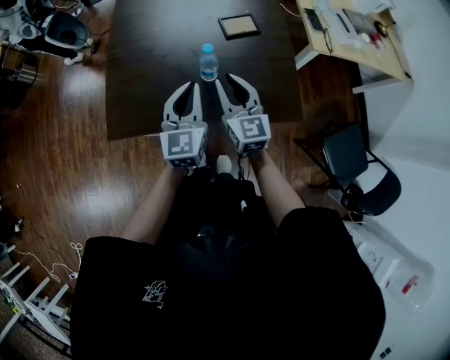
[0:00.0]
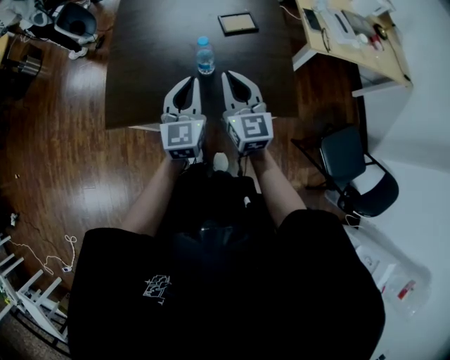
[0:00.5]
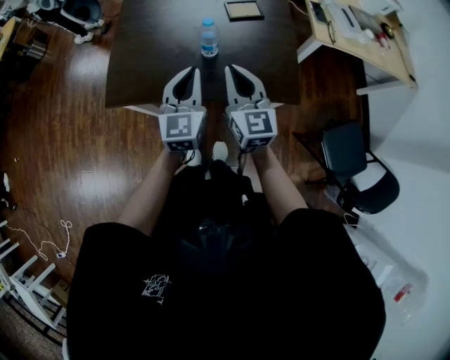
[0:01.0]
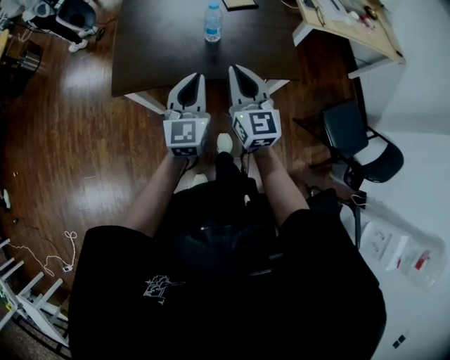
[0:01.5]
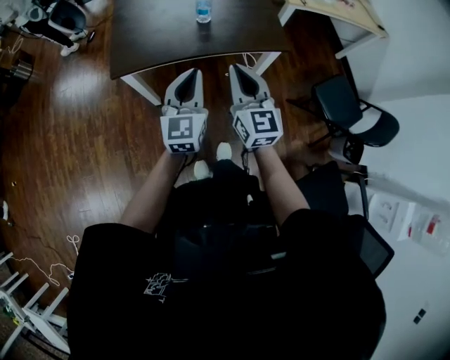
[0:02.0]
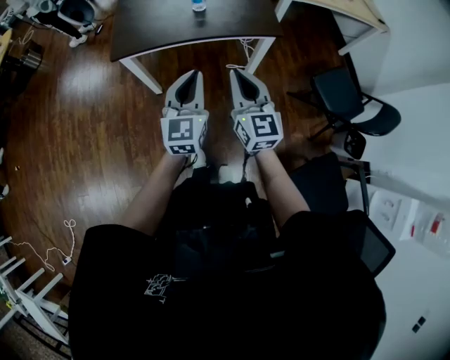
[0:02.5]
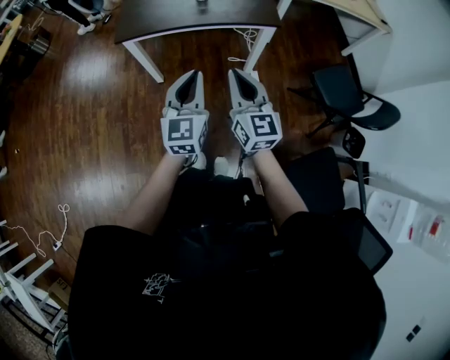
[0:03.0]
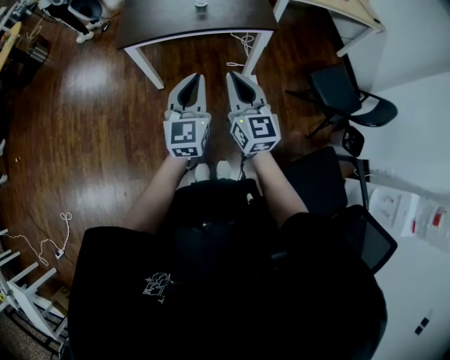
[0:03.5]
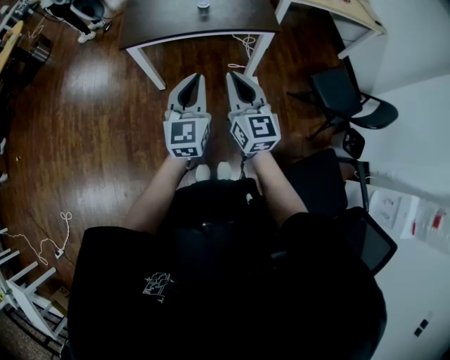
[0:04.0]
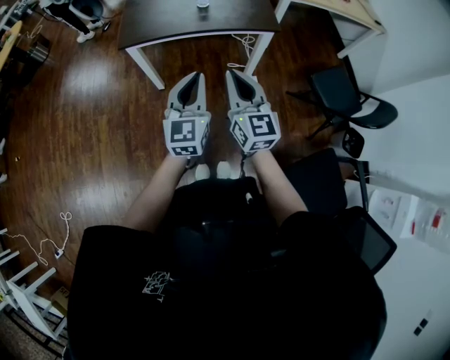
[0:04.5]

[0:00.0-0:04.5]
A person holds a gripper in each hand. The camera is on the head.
0:00.0 to 0:02.0: The two grippers go some 30 cm backward. The right gripper closes its fingers.
0:02.0 to 0:04.5: The two grippers go some 20 cm backward.

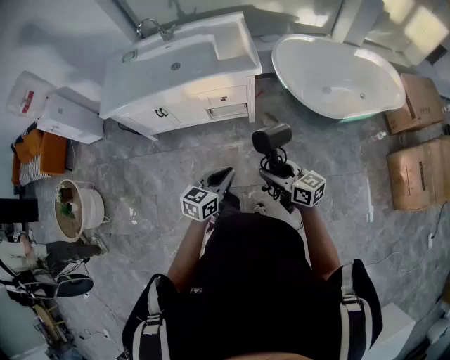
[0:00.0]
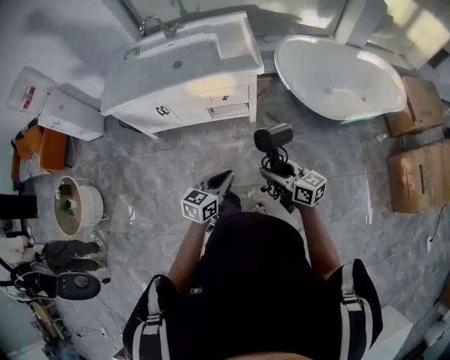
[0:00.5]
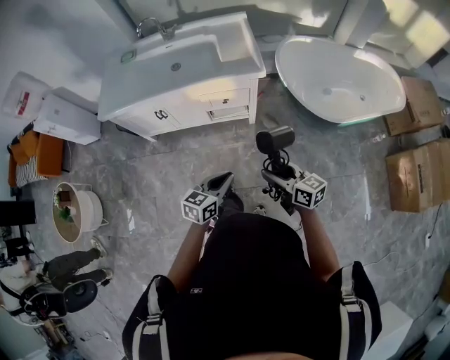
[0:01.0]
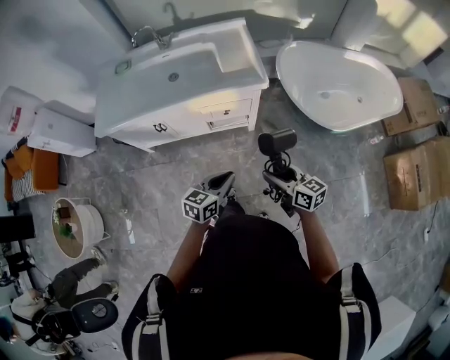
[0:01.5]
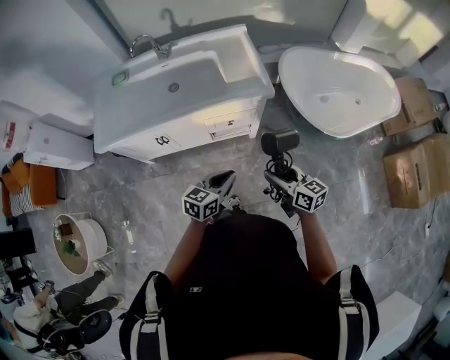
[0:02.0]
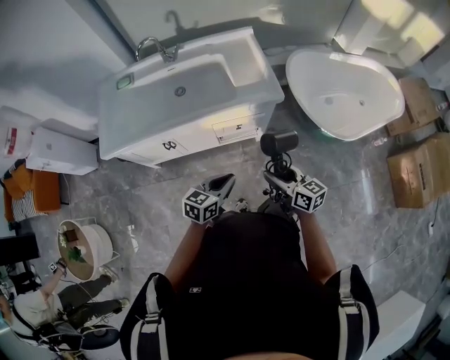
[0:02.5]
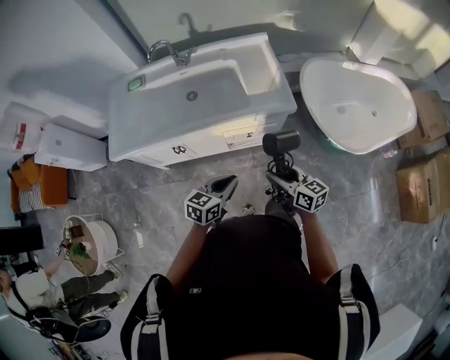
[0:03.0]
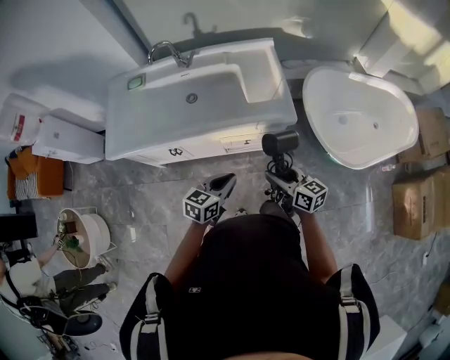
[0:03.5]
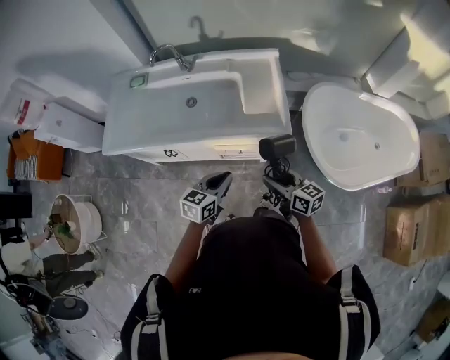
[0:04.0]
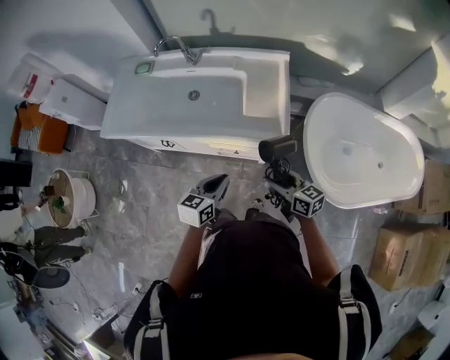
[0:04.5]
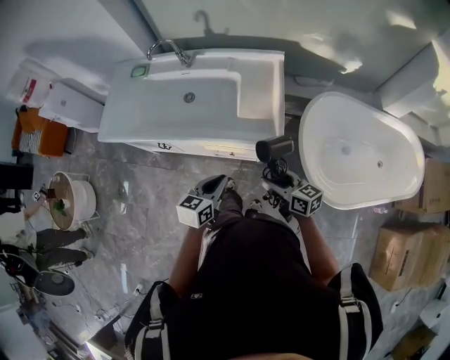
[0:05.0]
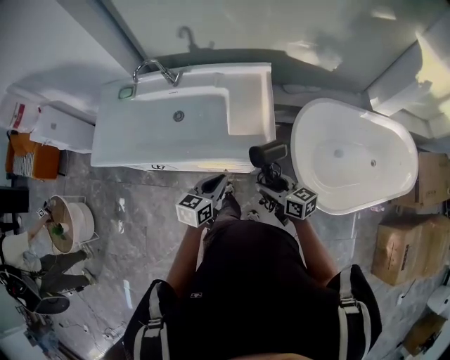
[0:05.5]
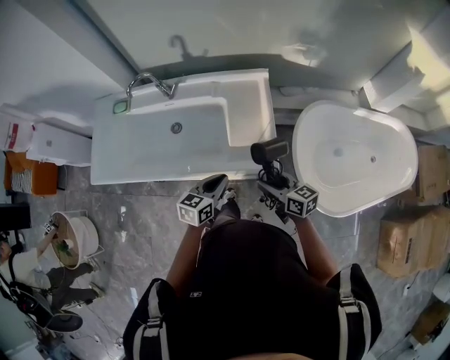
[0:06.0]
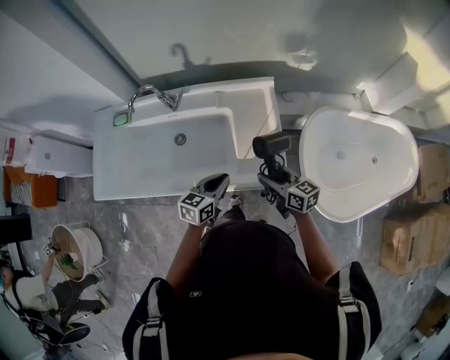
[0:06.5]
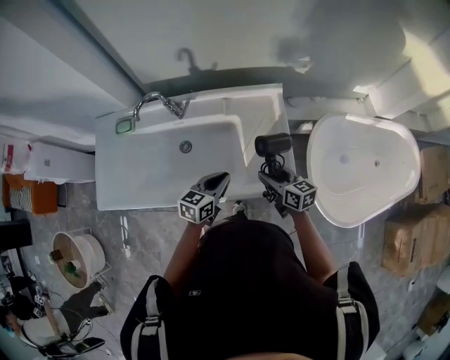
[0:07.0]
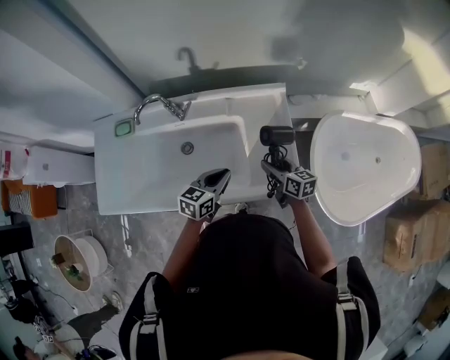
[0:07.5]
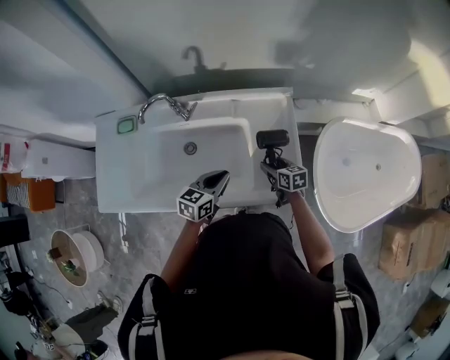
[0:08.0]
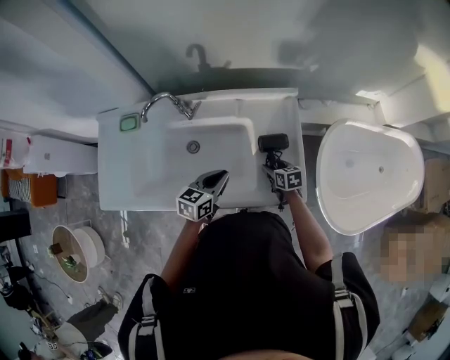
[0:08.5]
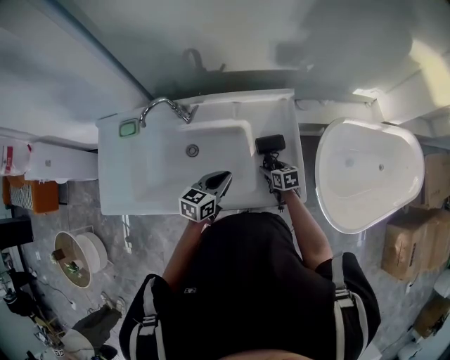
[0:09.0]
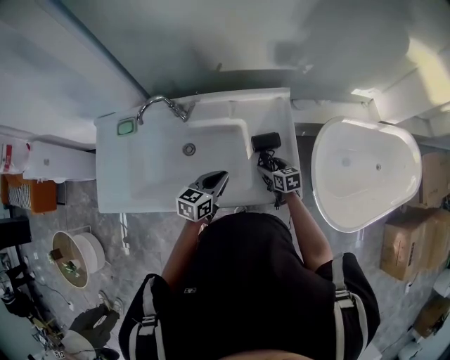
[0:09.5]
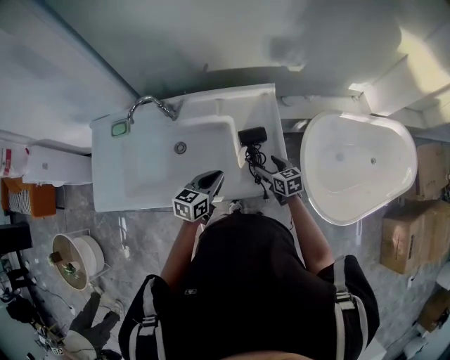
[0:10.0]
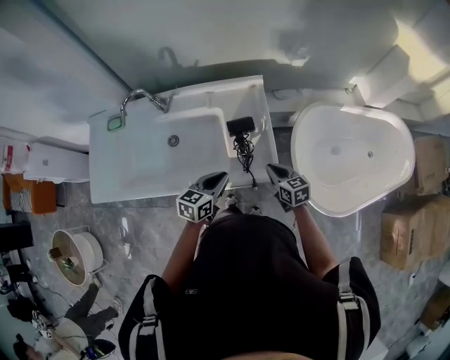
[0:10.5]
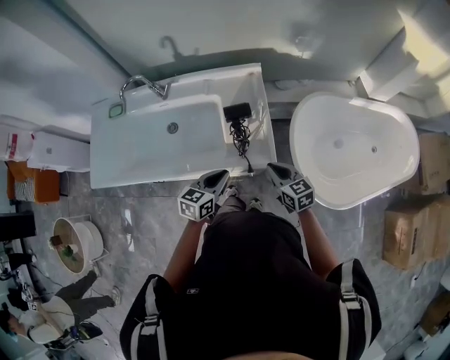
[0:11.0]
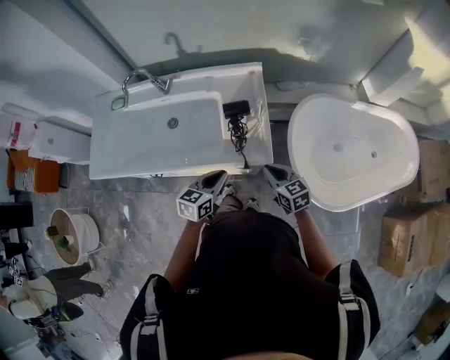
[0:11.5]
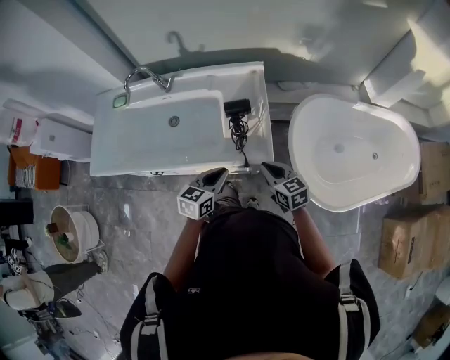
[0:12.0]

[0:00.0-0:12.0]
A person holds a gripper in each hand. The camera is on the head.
0:00.0 to 0:02.0: Both grippers travel together forward and to the left, about 20 cm.
0:02.0 to 0:04.0: Both grippers move forward, about 15 cm.
0:04.0 to 0:06.0: The grippers both shift forward and to the right by roughly 15 cm.
0:06.0 to 0:08.0: The right gripper shifts approximately 25 cm forward and downward, and swivels roughly 20 degrees. The left gripper is displaced forward and to the left by roughly 20 cm.
0:08.0 to 0:10.0: The right gripper changes place by approximately 5 cm.
0:10.0 to 0:12.0: The right gripper shifts approximately 20 cm backward, upward and to the right, and closes. Meanwhile the left gripper goes roughly 15 cm backward and to the right.

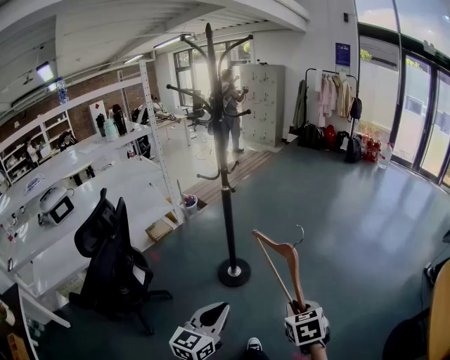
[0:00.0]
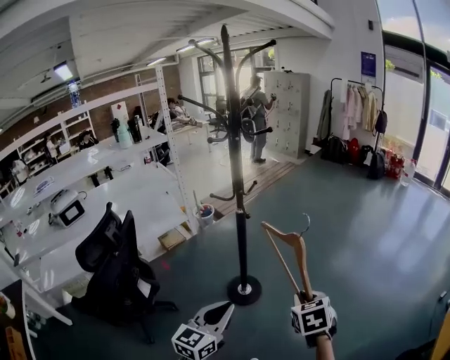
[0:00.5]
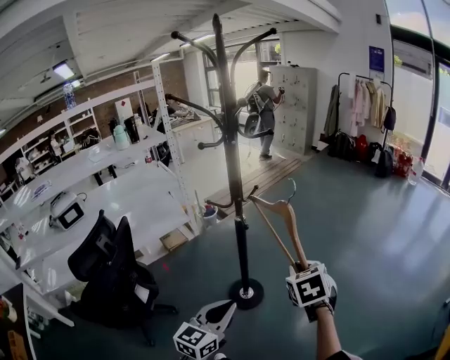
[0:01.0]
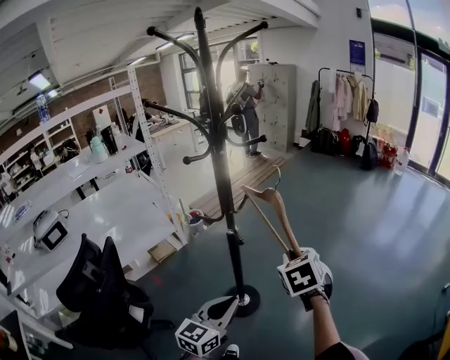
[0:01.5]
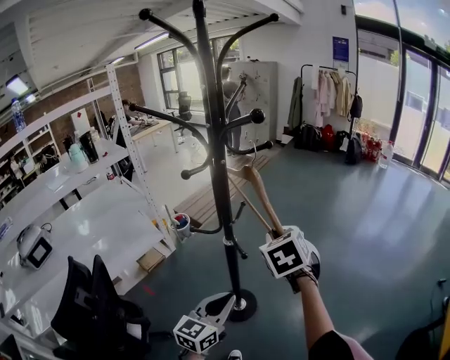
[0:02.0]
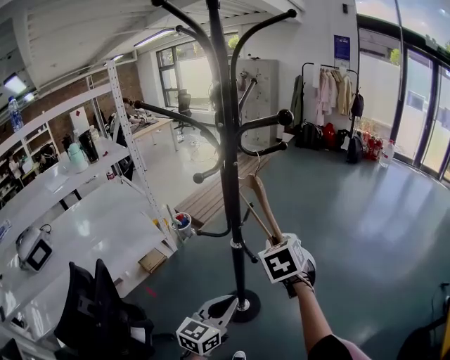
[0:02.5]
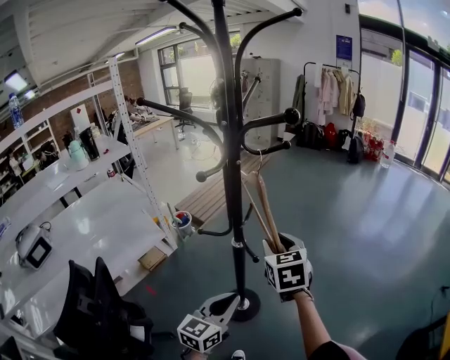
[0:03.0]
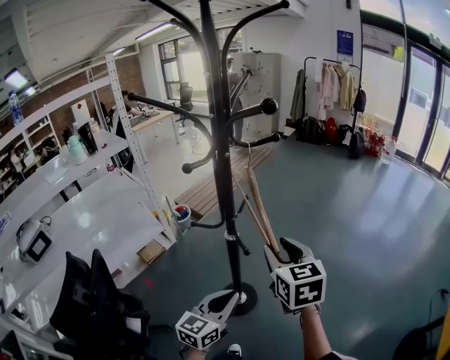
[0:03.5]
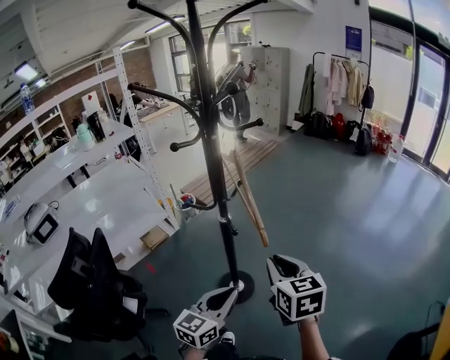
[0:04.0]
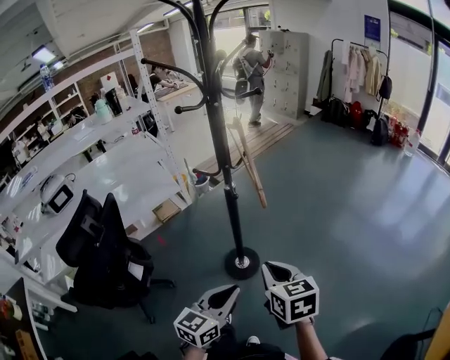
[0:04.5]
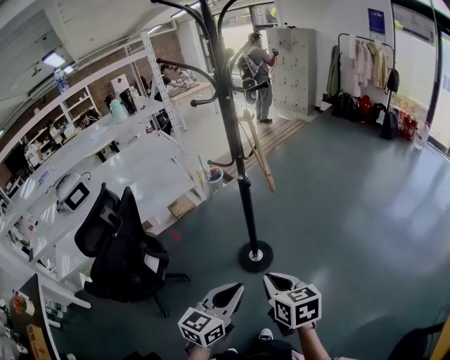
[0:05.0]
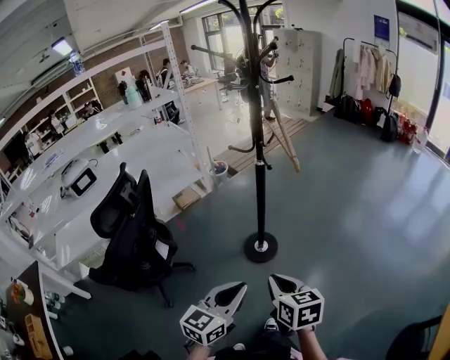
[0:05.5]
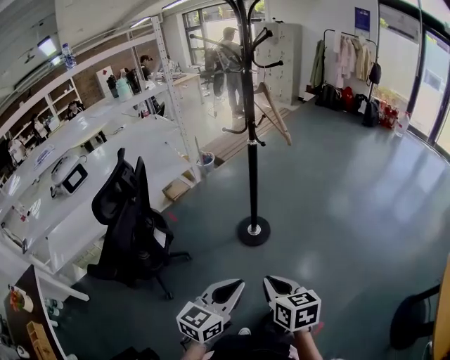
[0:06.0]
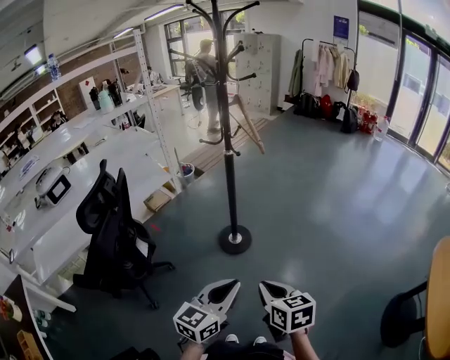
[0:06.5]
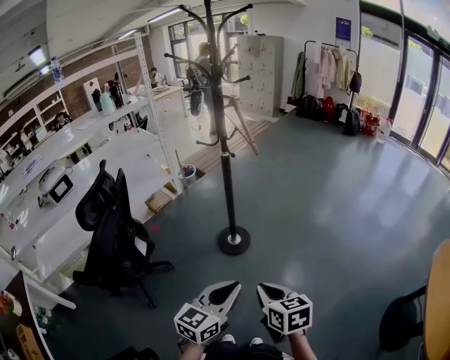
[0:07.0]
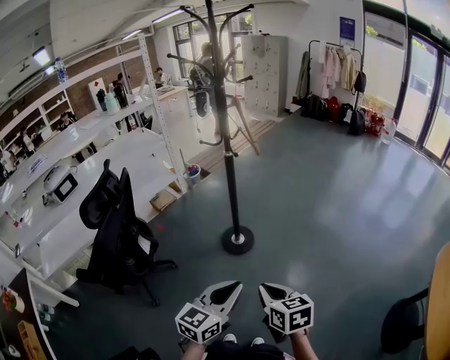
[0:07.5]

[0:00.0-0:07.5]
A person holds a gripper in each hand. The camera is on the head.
0:00.0 to 0:02.0: The left gripper goes some 40 cm forward, while the right gripper heads forward and to the left, covering roughly 50 cm.
0:02.0 to 0:04.0: The left gripper shifts some 5 cm to the right. The right gripper goes some 15 cm backward, to the right and downward, turns by roughly 30 degrees, and opens, then closes once more.
0:04.0 to 0:05.5: Both grippers move backward, some 30 cm.
0:05.5 to 0:07.5: The right gripper goes approximately 15 cm backward. Meanwhile the left gripper travels backward and to the right by approximately 15 cm.

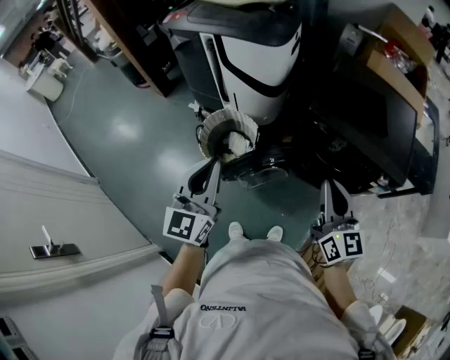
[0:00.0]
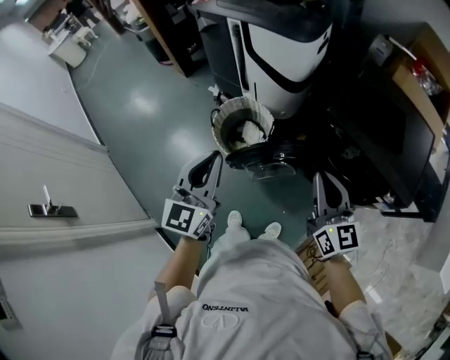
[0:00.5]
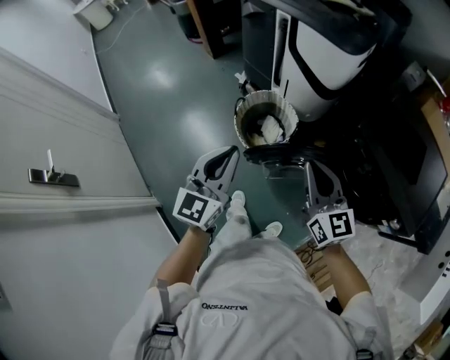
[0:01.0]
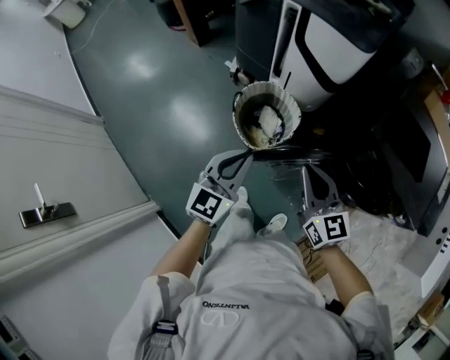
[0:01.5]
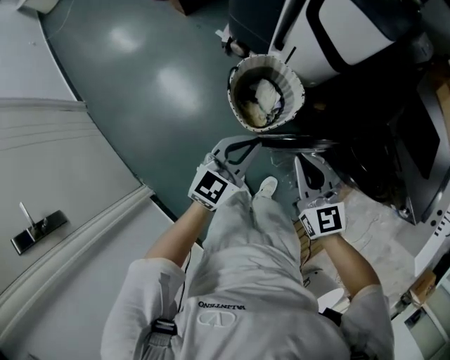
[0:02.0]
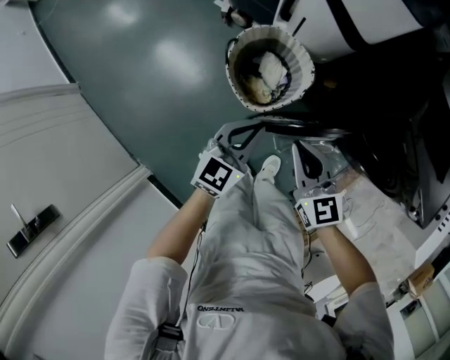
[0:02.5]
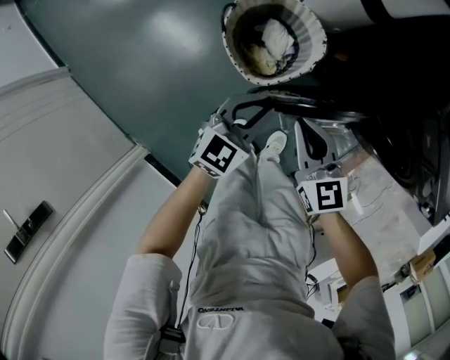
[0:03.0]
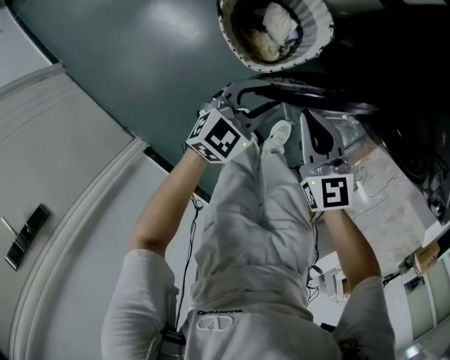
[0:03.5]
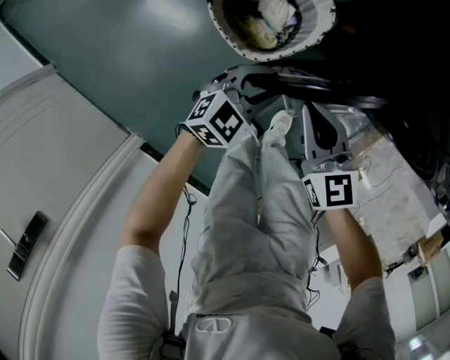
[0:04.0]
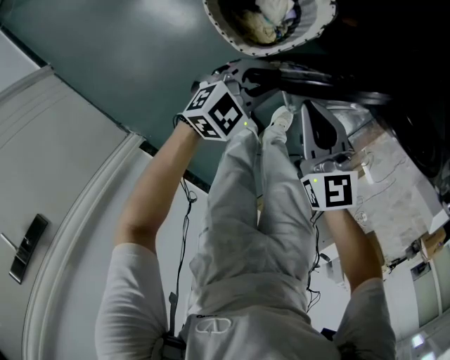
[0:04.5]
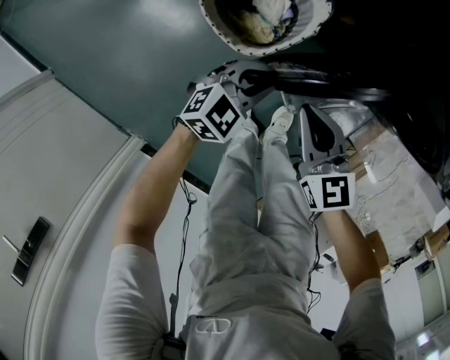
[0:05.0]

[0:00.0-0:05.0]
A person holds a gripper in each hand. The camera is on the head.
0:00.0 to 0:02.5: The left gripper is displaced downward and forward by about 35 cm, and turns by approximately 30 degrees. The right gripper shifts roughly 40 cm to the left, downward and forward, and turns by about 40 degrees.
0:02.5 to 0:05.0: Both grippers travel together downward, some 20 cm. The left gripper changes its angle by approximately 40 degrees.
